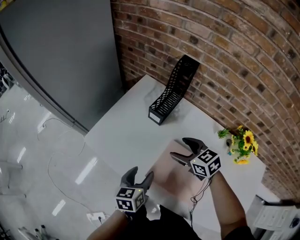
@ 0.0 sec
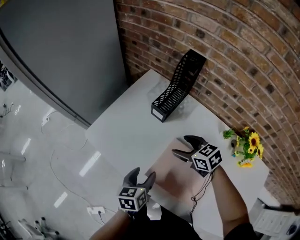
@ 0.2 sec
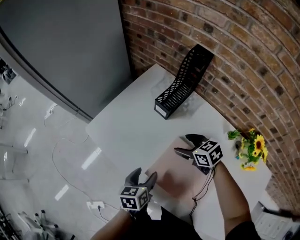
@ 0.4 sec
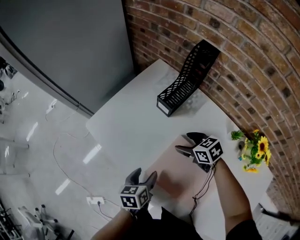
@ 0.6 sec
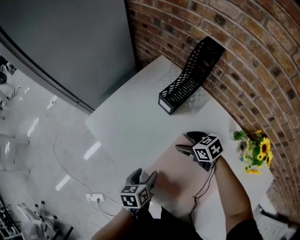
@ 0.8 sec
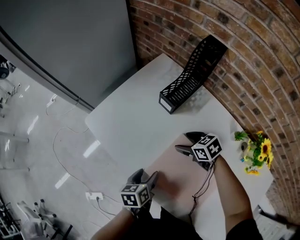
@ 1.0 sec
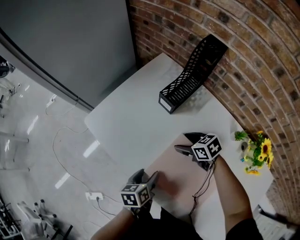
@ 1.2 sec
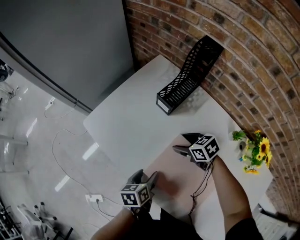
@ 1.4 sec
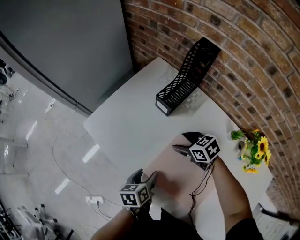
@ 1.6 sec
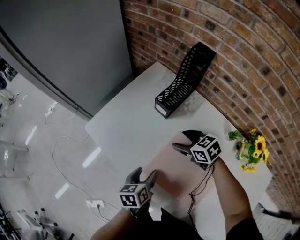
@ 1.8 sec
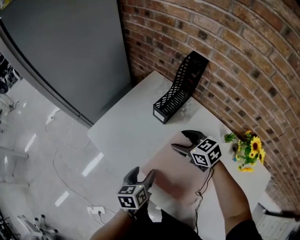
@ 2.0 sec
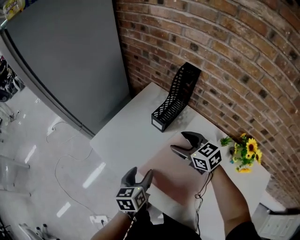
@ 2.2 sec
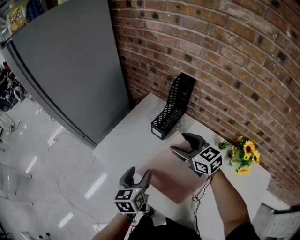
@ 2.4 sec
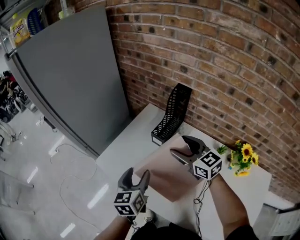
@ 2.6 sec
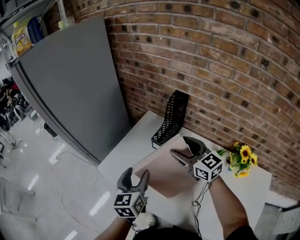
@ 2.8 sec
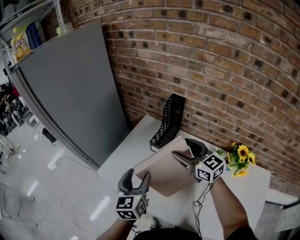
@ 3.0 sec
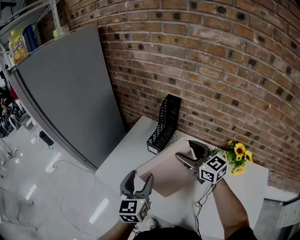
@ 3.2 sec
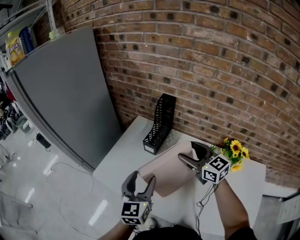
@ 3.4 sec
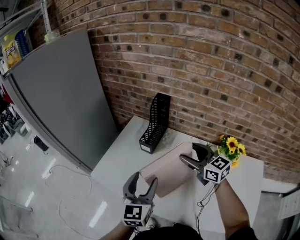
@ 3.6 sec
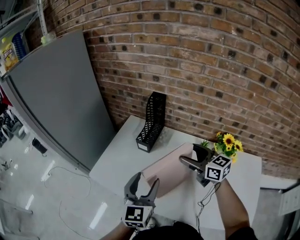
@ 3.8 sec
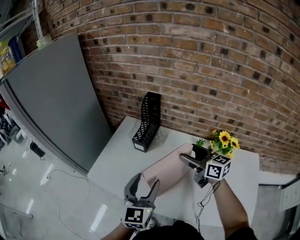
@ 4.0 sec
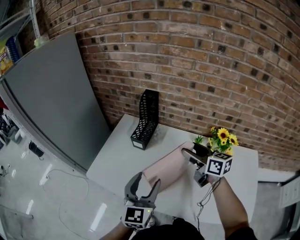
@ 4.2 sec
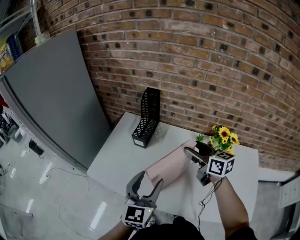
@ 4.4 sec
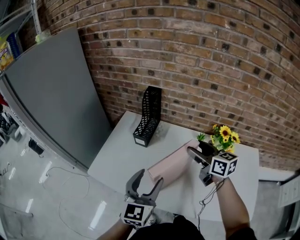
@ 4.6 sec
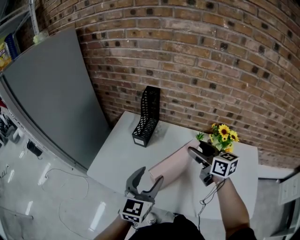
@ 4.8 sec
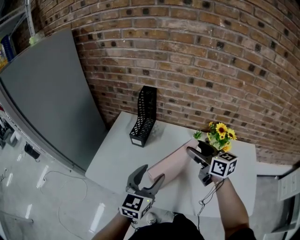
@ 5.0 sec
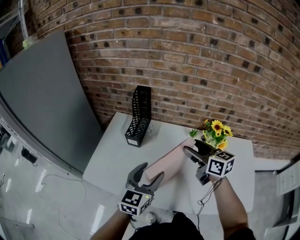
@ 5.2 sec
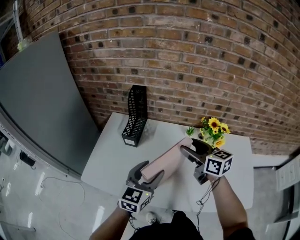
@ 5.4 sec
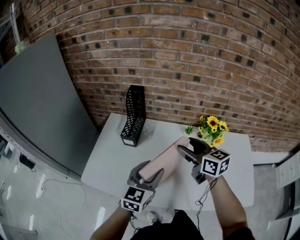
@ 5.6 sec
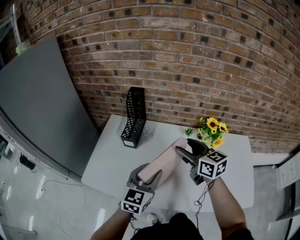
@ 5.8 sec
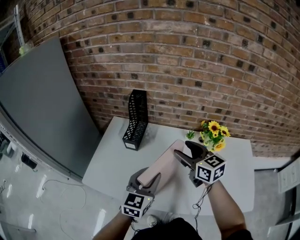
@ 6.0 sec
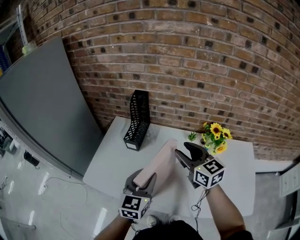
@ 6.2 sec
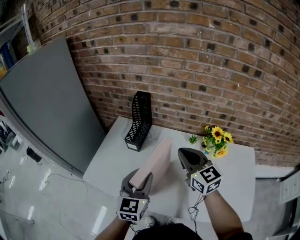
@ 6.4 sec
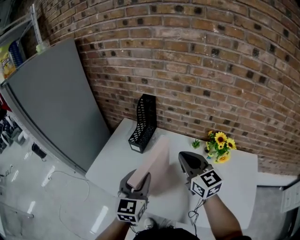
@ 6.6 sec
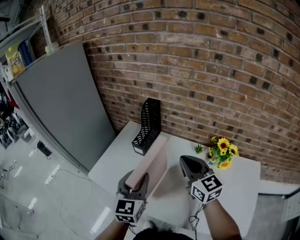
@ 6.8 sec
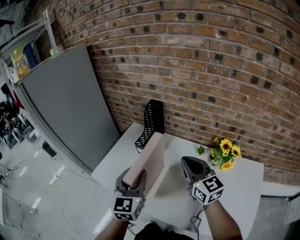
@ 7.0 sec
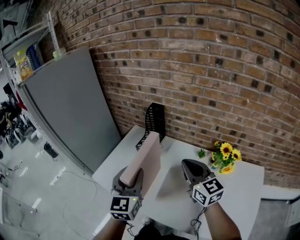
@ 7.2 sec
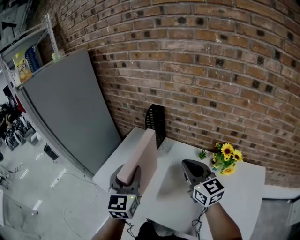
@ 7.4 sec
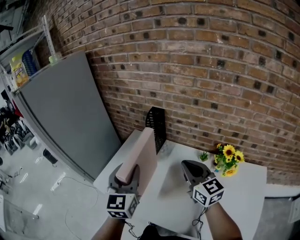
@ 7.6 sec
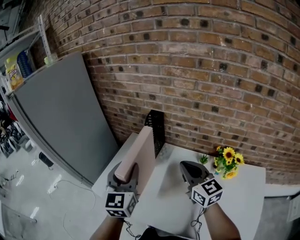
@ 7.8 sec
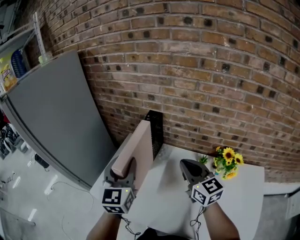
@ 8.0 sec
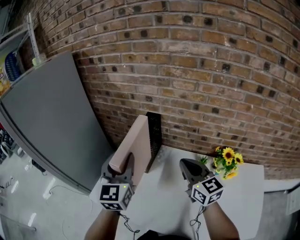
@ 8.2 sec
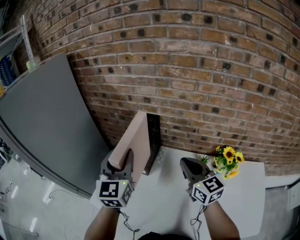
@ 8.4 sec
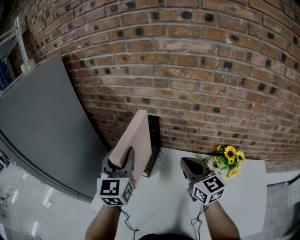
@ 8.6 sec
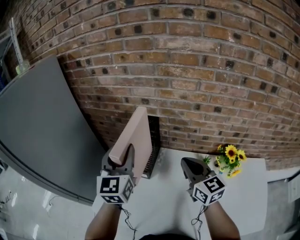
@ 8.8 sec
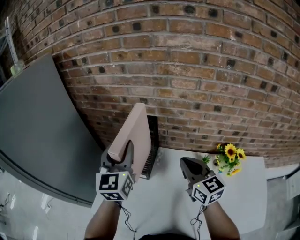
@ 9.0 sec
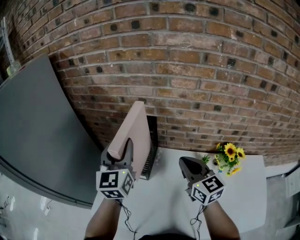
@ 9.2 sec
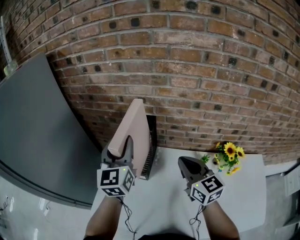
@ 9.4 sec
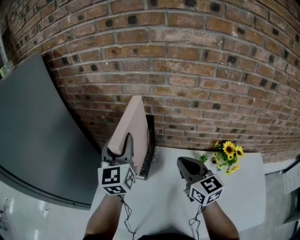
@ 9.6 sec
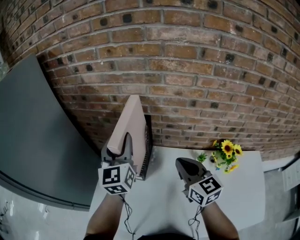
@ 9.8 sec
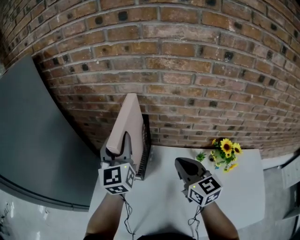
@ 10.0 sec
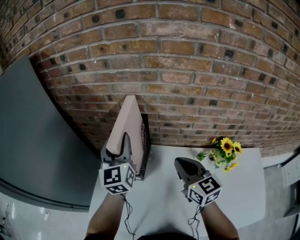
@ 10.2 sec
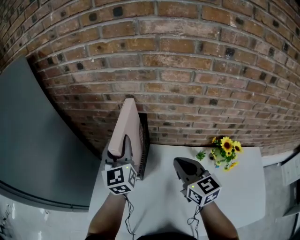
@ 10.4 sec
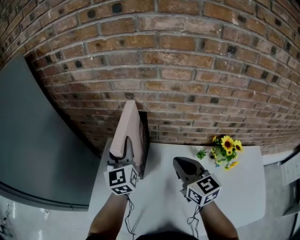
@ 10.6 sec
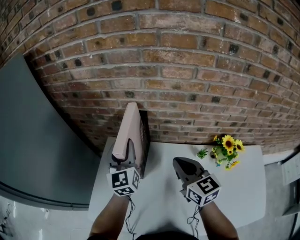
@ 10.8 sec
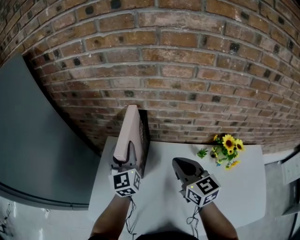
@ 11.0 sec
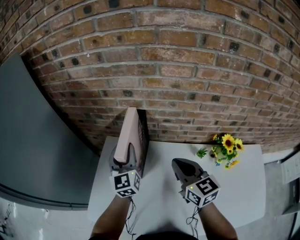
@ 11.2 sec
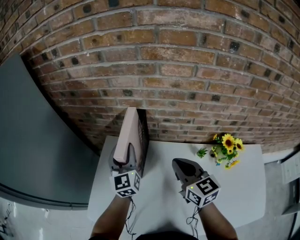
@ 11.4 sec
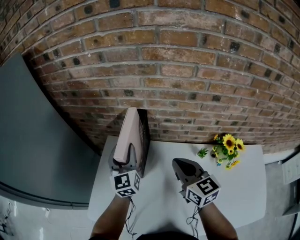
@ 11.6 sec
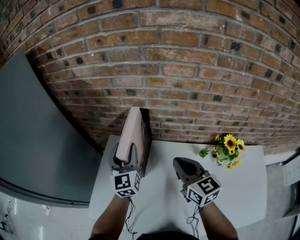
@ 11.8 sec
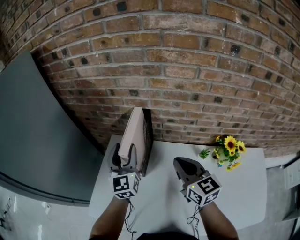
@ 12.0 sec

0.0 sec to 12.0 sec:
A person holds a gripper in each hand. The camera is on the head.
0.0 sec to 1.6 sec: Both grippers move downward, some 10 cm. The left gripper swivels some 20 degrees.
1.6 sec to 3.0 sec: Both grippers move upward, approximately 25 cm. The right gripper angles its fingers upward, by some 40 degrees; the left gripper tips its fingers upward by roughly 30 degrees.
3.0 sec to 4.4 sec: The right gripper is displaced to the right and backward by some 15 cm, and turns by roughly 30 degrees. The left gripper goes some 15 cm backward and to the right, and changes its angle by approximately 30 degrees.
4.4 sec to 6.0 sec: The left gripper ends up roughly 5 cm from where it was, and closes.
6.0 sec to 7.6 sec: The left gripper shifts roughly 15 cm upward, to the left and forward, and rotates some 30 degrees; the right gripper closes up.
7.6 sec to 9.0 sec: The left gripper heads forward, covering about 20 cm. The right gripper moves forward, approximately 10 cm.
9.0 sec to 10.4 sec: The left gripper travels forward and downward by some 10 cm.
10.4 sec to 12.0 sec: The left gripper is displaced downward by about 5 cm.

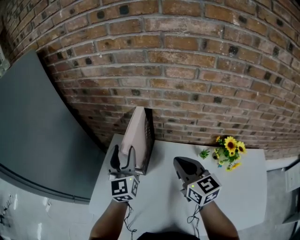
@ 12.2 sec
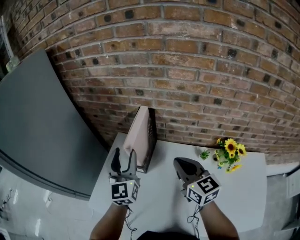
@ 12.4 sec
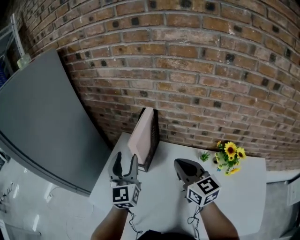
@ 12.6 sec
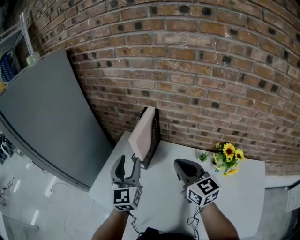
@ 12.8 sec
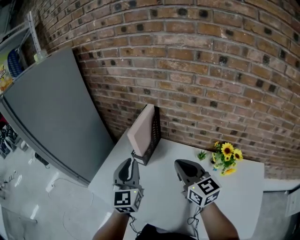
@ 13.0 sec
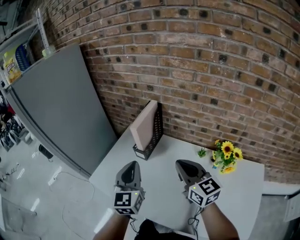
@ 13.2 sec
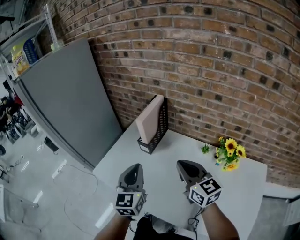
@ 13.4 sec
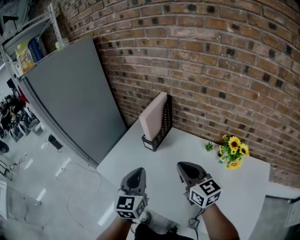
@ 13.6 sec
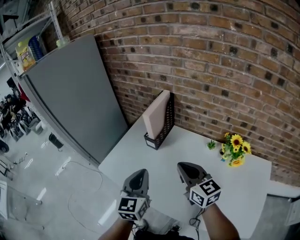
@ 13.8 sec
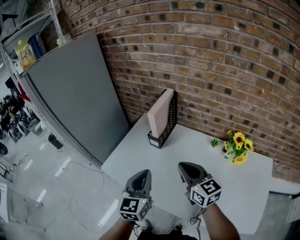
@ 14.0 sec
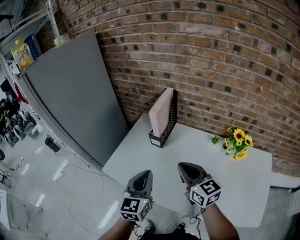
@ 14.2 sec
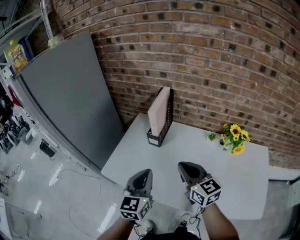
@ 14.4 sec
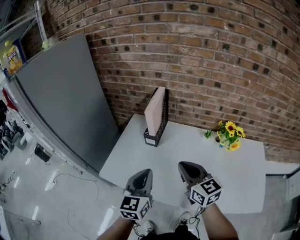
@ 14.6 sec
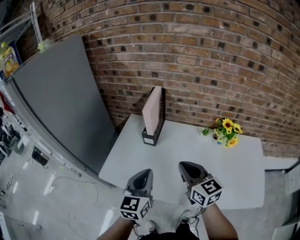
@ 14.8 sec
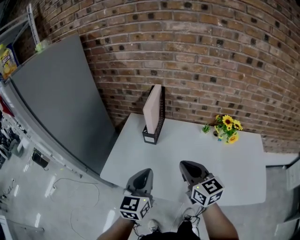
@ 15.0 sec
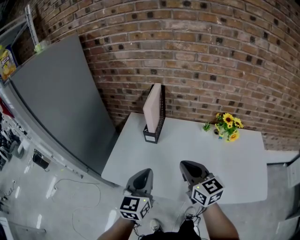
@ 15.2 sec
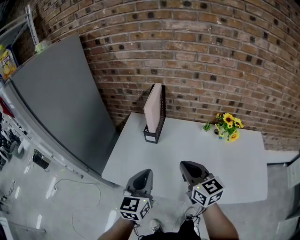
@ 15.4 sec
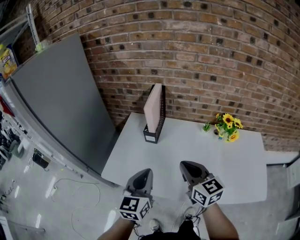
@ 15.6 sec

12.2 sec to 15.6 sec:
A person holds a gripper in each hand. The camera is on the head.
12.2 sec to 13.8 sec: The left gripper heads backward, covering about 30 cm, and closes, while the right gripper heads backward, covering some 15 cm.
13.8 sec to 15.6 sec: The left gripper travels to the left by roughly 10 cm, and swivels roughly 20 degrees. The right gripper travels to the left and backward by some 10 cm.

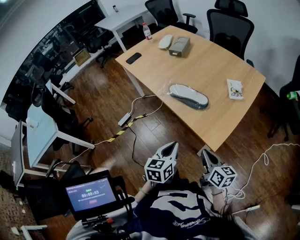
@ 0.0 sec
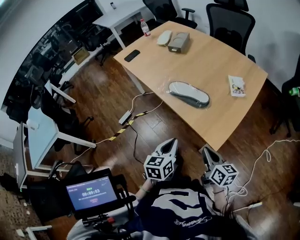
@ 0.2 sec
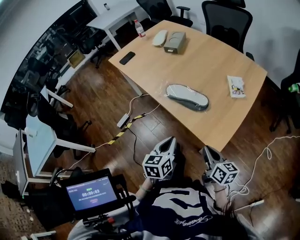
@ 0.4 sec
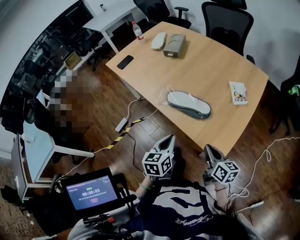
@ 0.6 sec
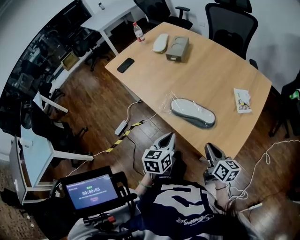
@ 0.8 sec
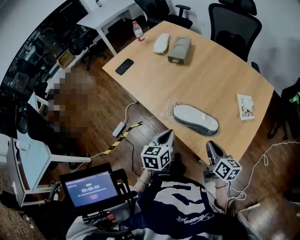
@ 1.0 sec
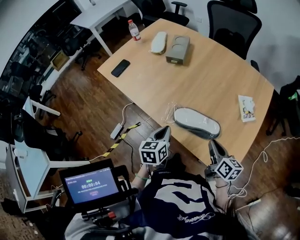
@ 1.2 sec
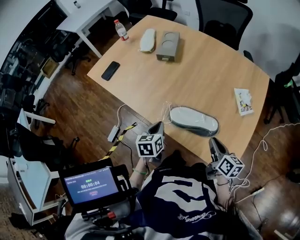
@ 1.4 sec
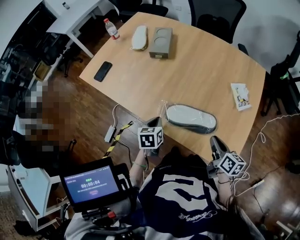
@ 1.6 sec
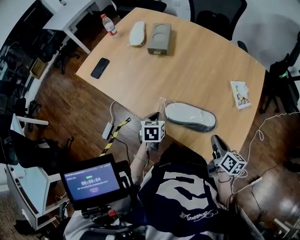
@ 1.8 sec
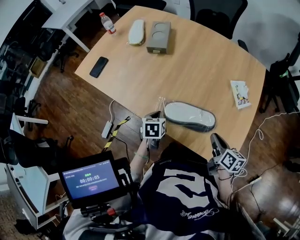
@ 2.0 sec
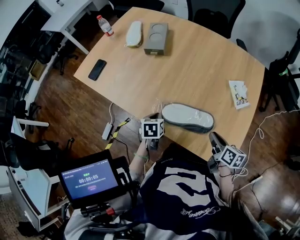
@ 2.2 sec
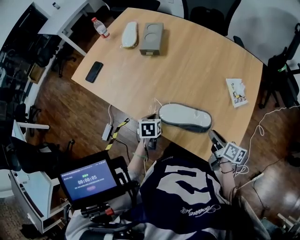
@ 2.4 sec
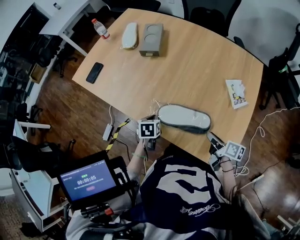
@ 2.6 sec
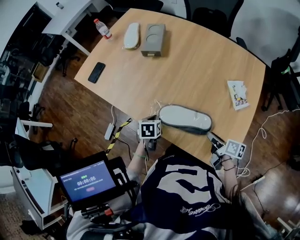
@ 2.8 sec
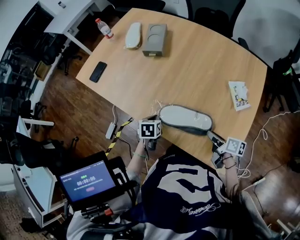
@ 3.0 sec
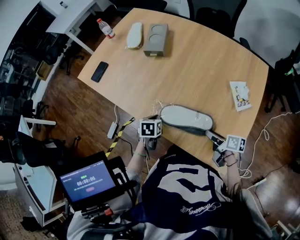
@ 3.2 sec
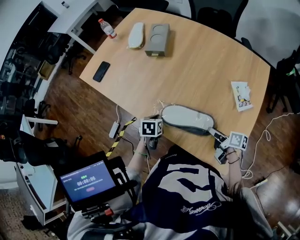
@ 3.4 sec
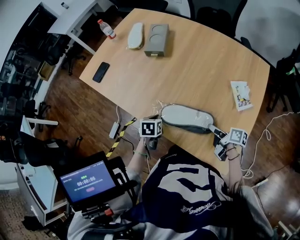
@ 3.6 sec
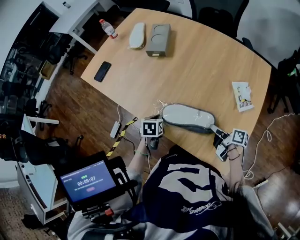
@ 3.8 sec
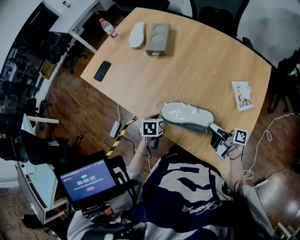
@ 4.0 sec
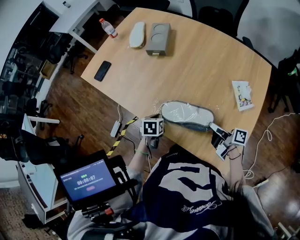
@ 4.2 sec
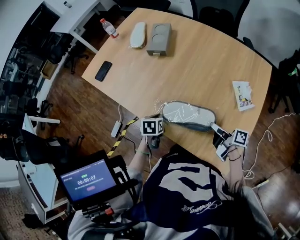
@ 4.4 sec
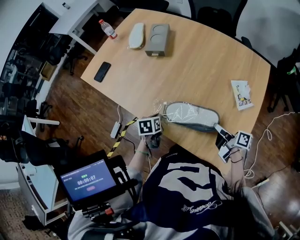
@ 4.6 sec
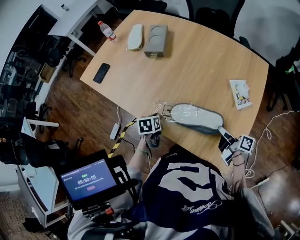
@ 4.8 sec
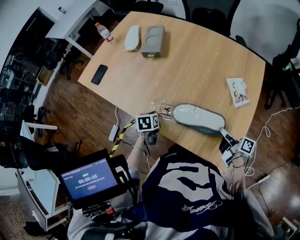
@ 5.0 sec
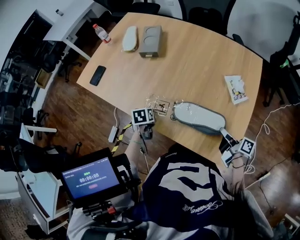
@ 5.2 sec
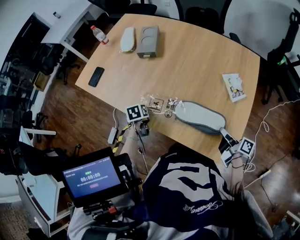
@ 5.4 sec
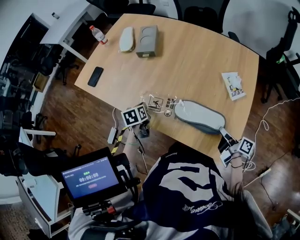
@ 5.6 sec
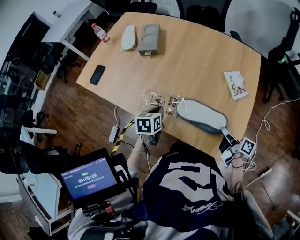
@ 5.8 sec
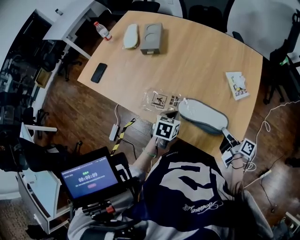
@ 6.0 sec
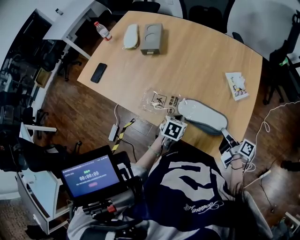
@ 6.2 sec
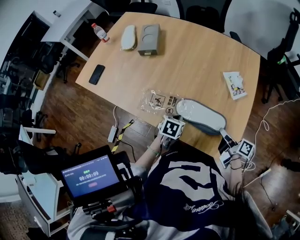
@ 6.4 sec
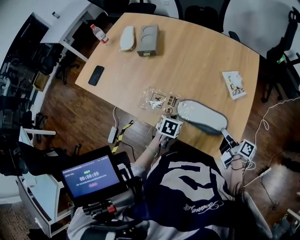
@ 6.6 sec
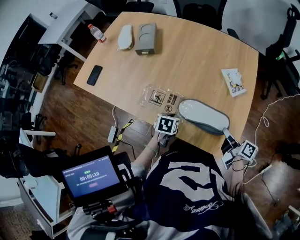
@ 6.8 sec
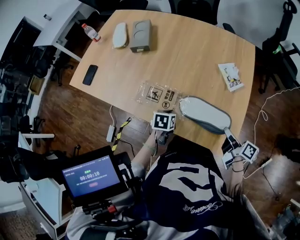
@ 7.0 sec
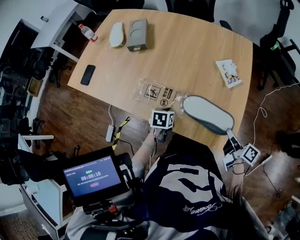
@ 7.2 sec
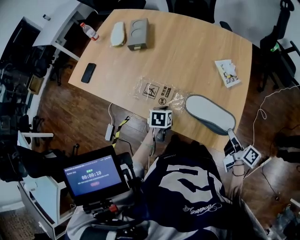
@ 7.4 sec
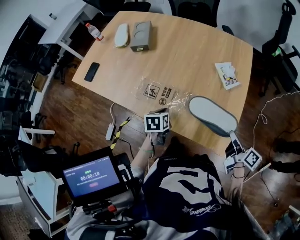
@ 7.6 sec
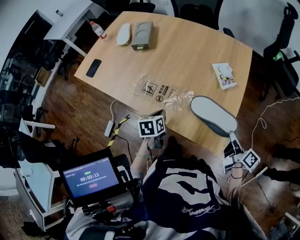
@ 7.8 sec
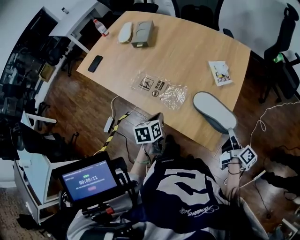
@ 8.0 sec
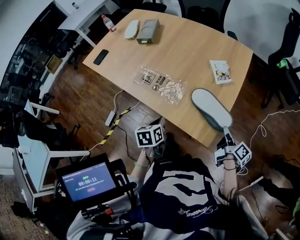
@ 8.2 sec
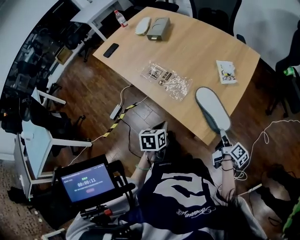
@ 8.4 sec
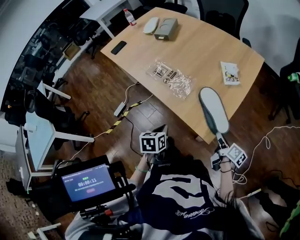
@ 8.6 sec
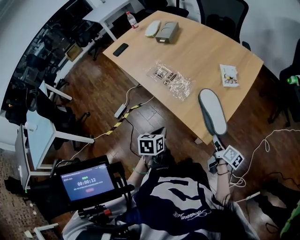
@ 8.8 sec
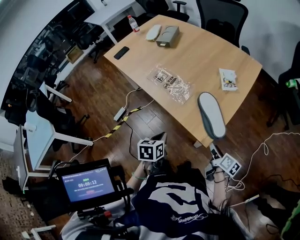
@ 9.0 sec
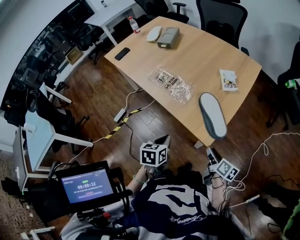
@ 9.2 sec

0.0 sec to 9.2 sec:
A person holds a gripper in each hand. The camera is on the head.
0.0 sec to 1.6 sec: Both grippers travel together forward, roughly 30 cm. The right gripper changes its angle by about 30 degrees. Meanwhile the left gripper rotates about 20 degrees.
1.6 sec to 3.0 sec: Both grippers travel together downward, some 5 cm. The right gripper swivels roughly 30 degrees, and opens.
3.0 sec to 4.6 sec: The right gripper shifts by about 5 cm.
4.6 sec to 6.2 sec: The left gripper is displaced to the right and backward by about 15 cm, and swivels about 40 degrees, while the right gripper shifts roughly 10 cm backward.
6.2 sec to 7.6 sec: The left gripper rotates approximately 20 degrees, while the right gripper shifts some 10 cm to the right, upward and backward.
7.6 sec to 9.2 sec: The right gripper heads backward and downward, covering about 15 cm, changes its angle by approximately 20 degrees, and opens; the left gripper moves backward, approximately 30 cm.
